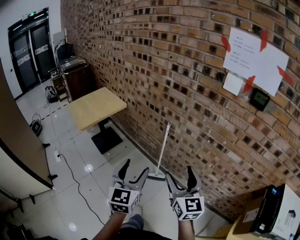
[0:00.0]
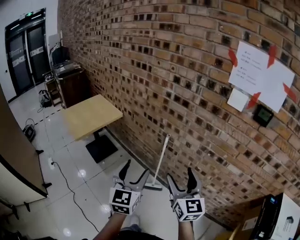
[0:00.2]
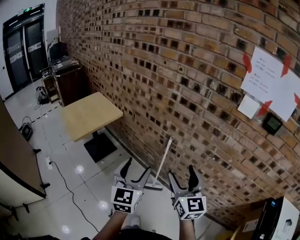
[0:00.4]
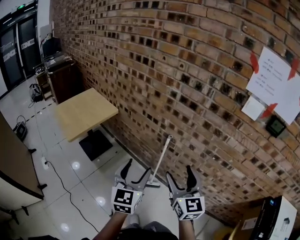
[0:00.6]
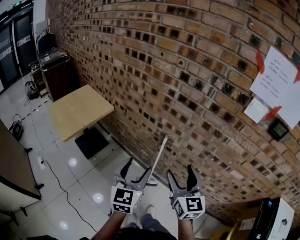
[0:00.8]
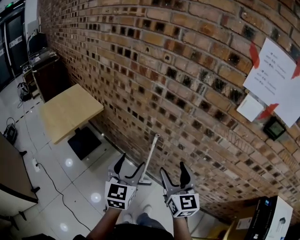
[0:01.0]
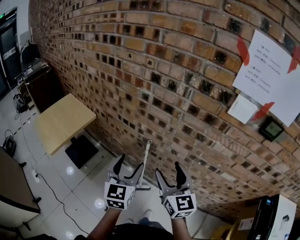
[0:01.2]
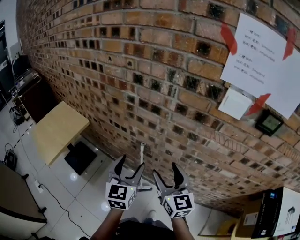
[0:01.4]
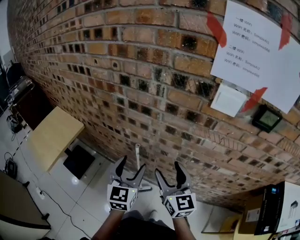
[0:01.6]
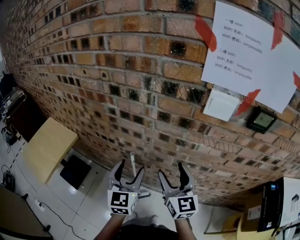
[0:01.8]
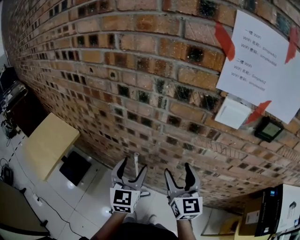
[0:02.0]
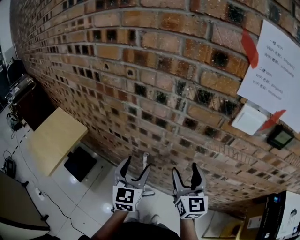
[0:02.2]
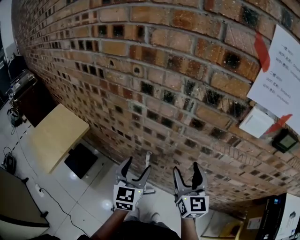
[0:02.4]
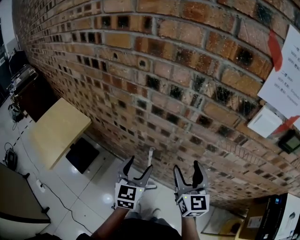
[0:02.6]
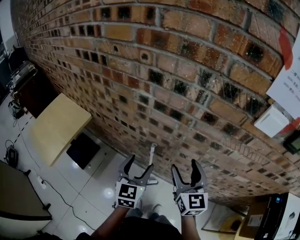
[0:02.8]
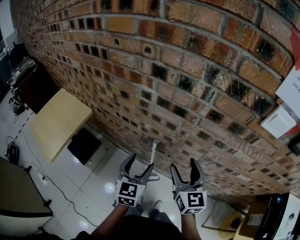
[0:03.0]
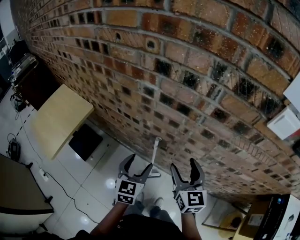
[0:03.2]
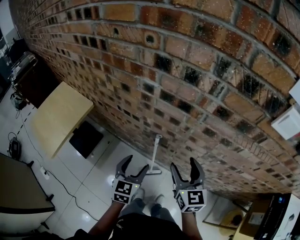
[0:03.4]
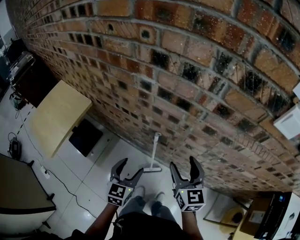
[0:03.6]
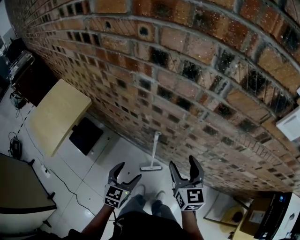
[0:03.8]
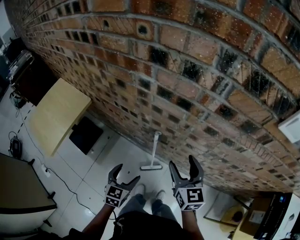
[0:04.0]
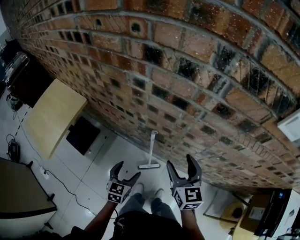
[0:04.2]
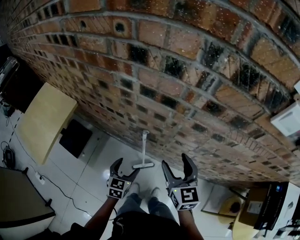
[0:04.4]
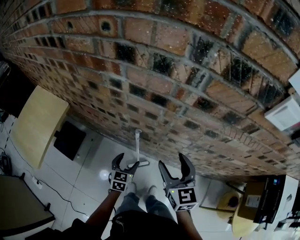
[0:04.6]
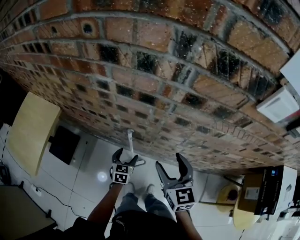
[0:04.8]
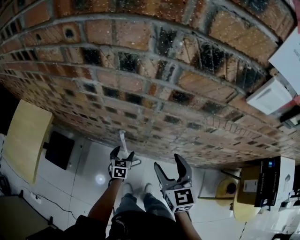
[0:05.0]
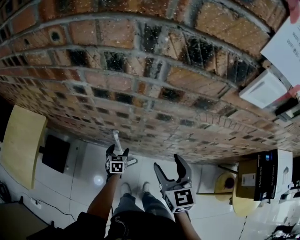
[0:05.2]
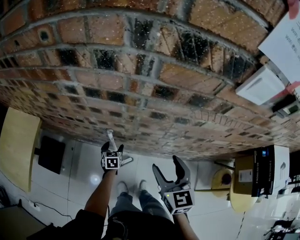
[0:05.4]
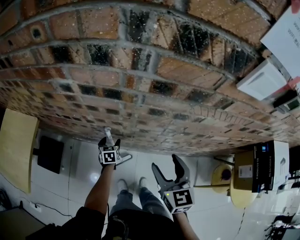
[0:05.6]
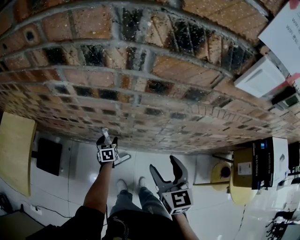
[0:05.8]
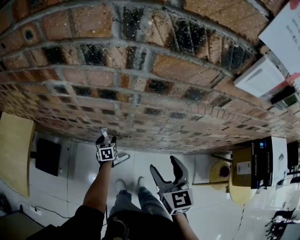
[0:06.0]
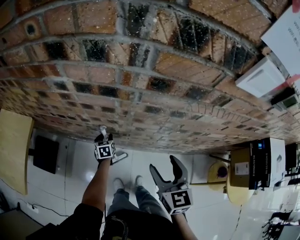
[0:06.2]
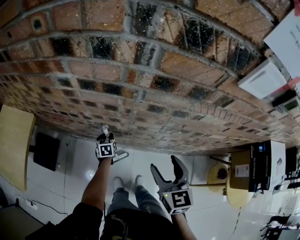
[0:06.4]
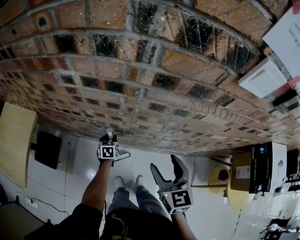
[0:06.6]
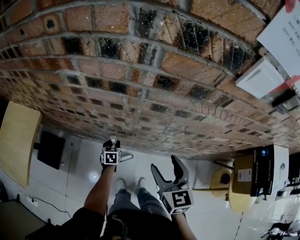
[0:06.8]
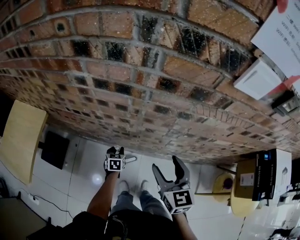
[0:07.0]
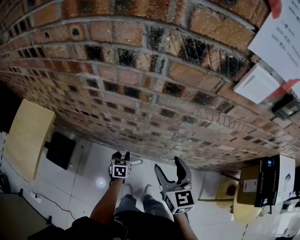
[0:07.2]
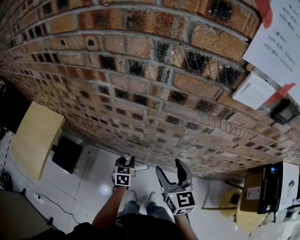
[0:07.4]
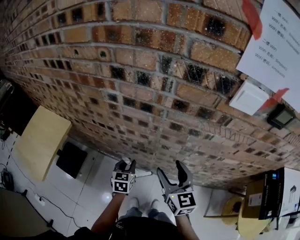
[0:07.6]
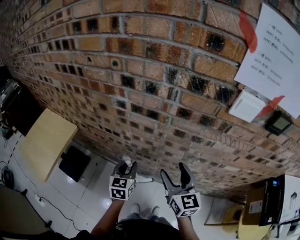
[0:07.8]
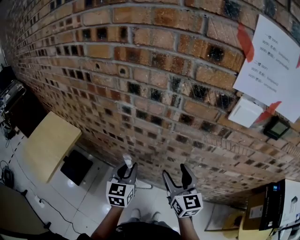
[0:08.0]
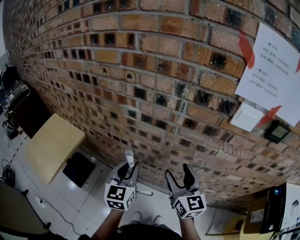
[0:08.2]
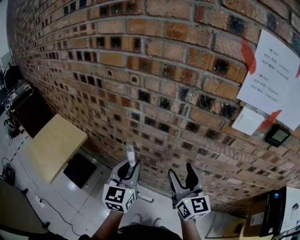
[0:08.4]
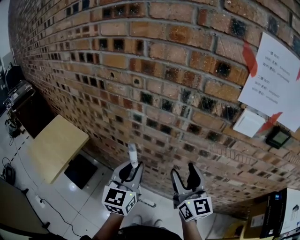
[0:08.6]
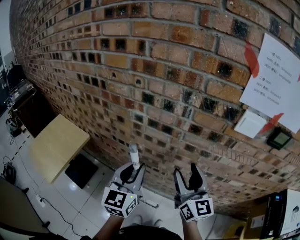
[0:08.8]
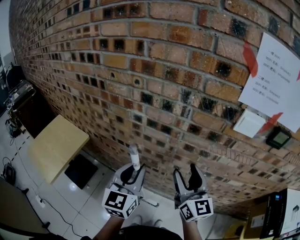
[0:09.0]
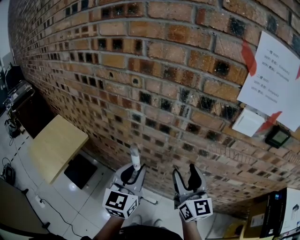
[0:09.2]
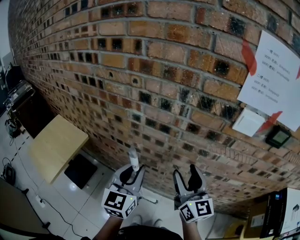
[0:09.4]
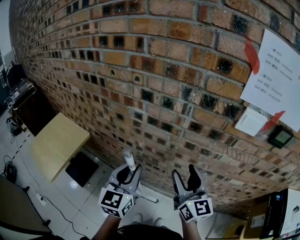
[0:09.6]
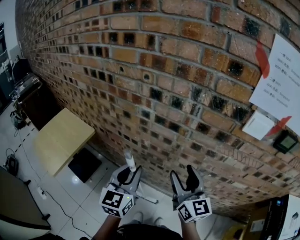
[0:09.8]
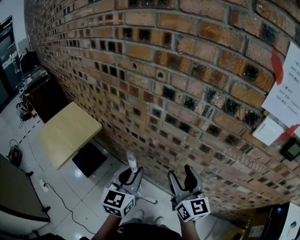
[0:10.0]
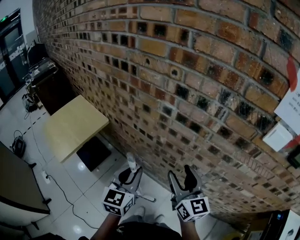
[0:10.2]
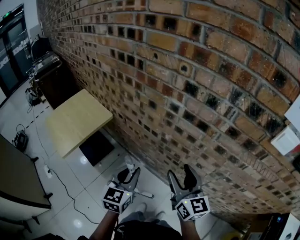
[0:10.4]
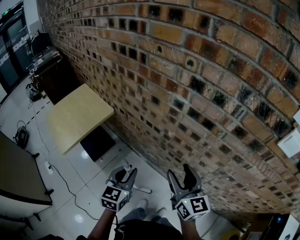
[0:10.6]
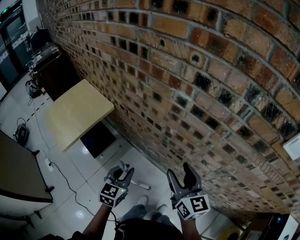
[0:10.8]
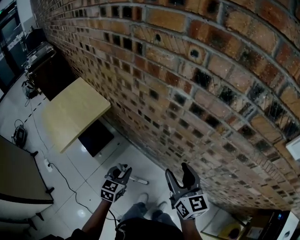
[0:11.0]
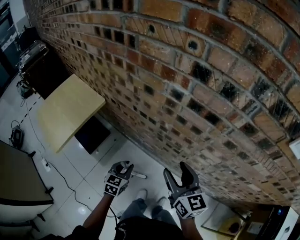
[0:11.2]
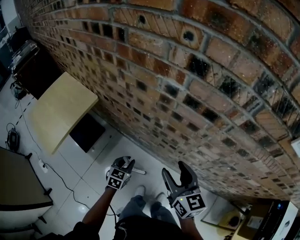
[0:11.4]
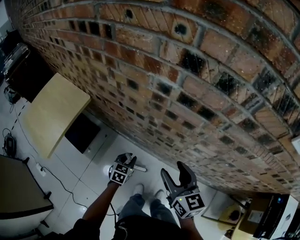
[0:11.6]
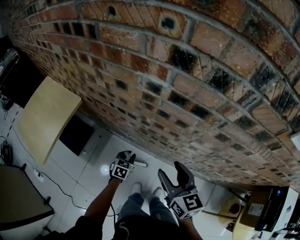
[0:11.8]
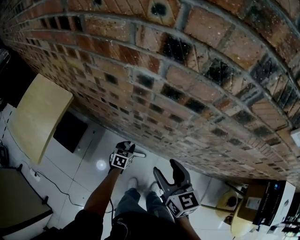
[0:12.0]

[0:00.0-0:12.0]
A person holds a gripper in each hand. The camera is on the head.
0:00.0 to 0:01.6: The two grippers go about 30 cm forward.
0:01.6 to 0:03.0: The left gripper shifts approximately 15 cm downward, to the left and forward, while the right gripper is displaced forward by some 5 cm.
0:03.0 to 0:04.4: The left gripper is displaced downward by roughly 20 cm, while the right gripper moves downward, approximately 5 cm.
0:04.4 to 0:06.0: The left gripper moves forward and downward, approximately 20 cm, while the right gripper is displaced to the right by approximately 10 cm.
0:06.0 to 0:07.6: The right gripper goes roughly 5 cm upward; the left gripper shifts about 25 cm upward and backward, and closes.
0:07.6 to 0:09.0: The right gripper heads upward, covering about 10 cm. The left gripper heads upward, covering roughly 30 cm, and angles its fingers upward, by some 30 degrees.
0:09.0 to 0:10.4: The left gripper heads downward and to the left, covering about 15 cm, and changes its angle by about 20 degrees, while the right gripper moves to the left and downward, roughly 15 cm, and swivels approximately 20 degrees.
0:10.4 to 0:12.0: The right gripper heads downward, covering approximately 10 cm, while the left gripper travels downward and forward by about 40 cm, and swivels roughly 30 degrees.

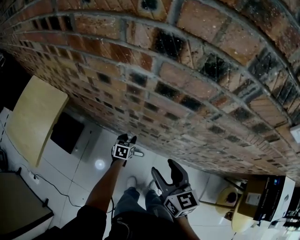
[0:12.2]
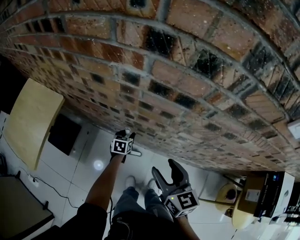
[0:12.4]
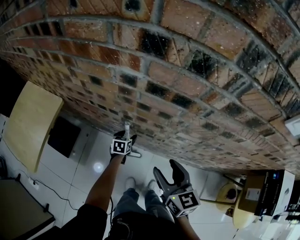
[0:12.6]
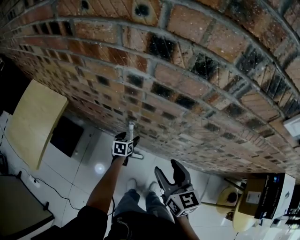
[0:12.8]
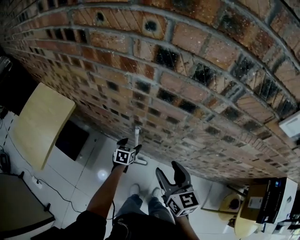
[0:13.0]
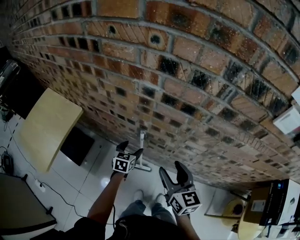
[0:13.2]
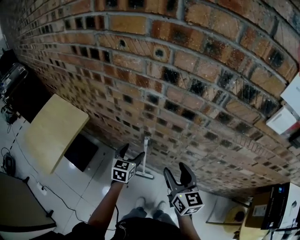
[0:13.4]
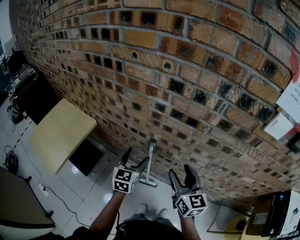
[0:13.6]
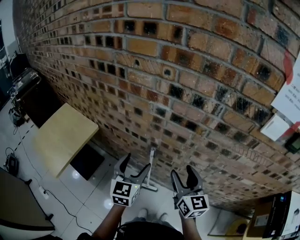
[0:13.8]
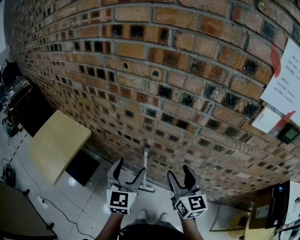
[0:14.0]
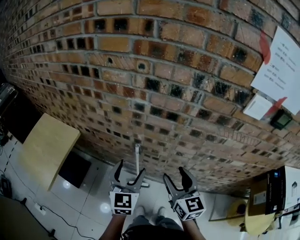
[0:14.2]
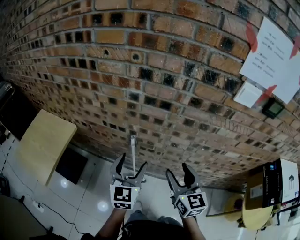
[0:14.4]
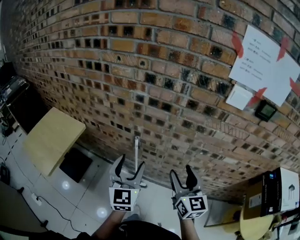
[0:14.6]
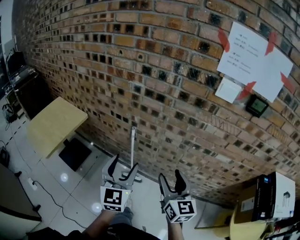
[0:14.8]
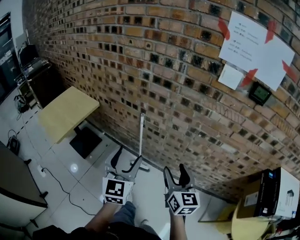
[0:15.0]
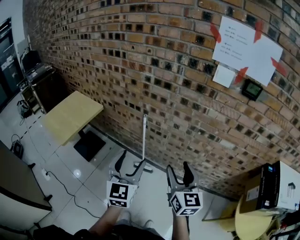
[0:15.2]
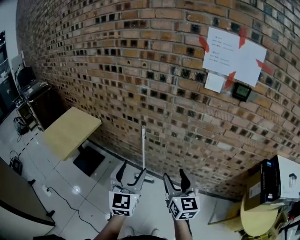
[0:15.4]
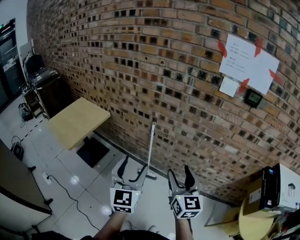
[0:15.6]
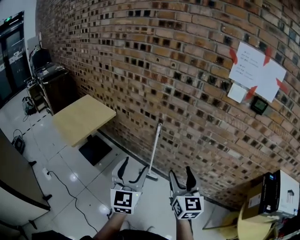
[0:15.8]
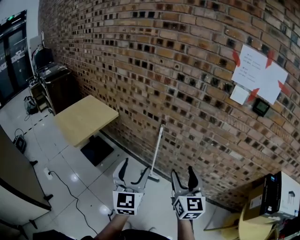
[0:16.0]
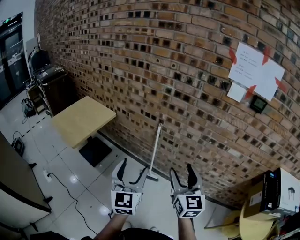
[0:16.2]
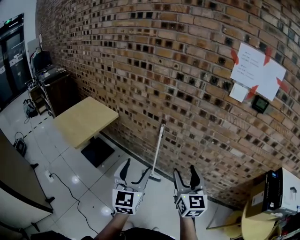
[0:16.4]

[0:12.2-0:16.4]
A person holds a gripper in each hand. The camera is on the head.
0:12.2 to 0:13.6: The left gripper heads upward, covering about 30 cm, rotates about 30 degrees, and opens its fingers, while the right gripper is displaced upward by about 10 cm.
0:13.6 to 0:15.0: The right gripper shifts roughly 25 cm backward; the left gripper is displaced backward and upward by about 35 cm.
0:15.0 to 0:16.4: The right gripper moves to the left, backward and upward, about 15 cm. The left gripper travels backward and to the left by approximately 15 cm.

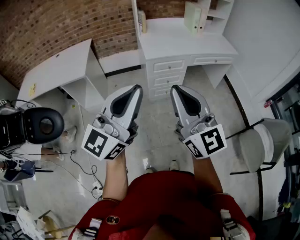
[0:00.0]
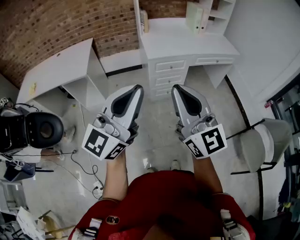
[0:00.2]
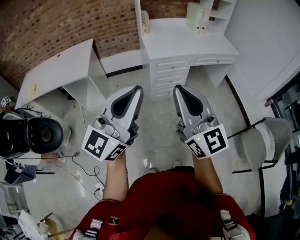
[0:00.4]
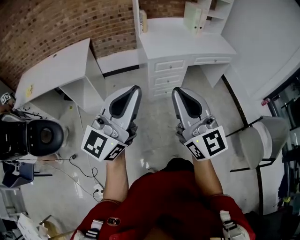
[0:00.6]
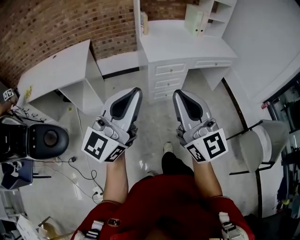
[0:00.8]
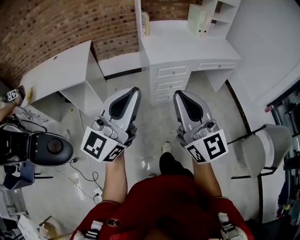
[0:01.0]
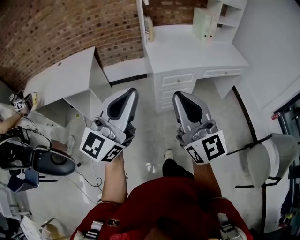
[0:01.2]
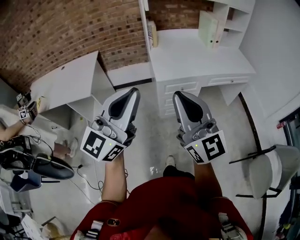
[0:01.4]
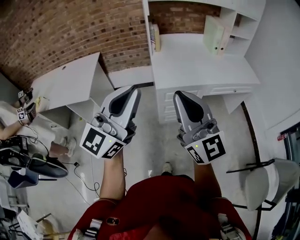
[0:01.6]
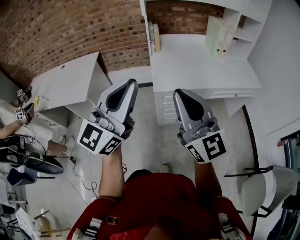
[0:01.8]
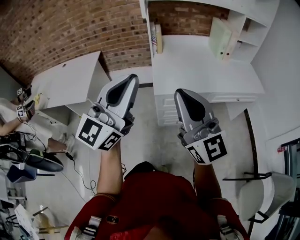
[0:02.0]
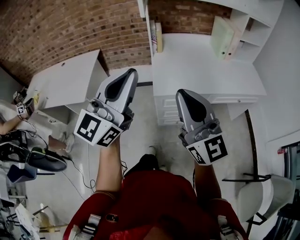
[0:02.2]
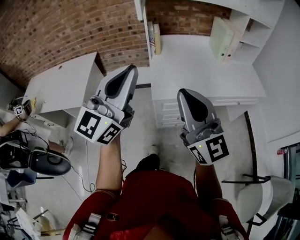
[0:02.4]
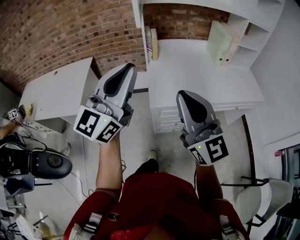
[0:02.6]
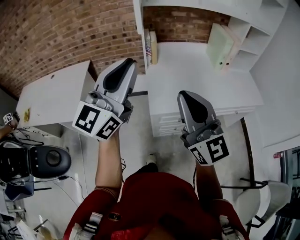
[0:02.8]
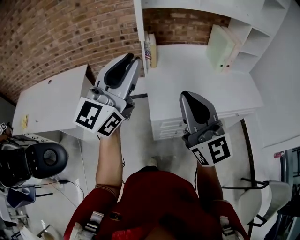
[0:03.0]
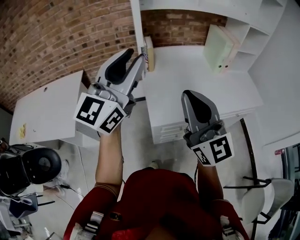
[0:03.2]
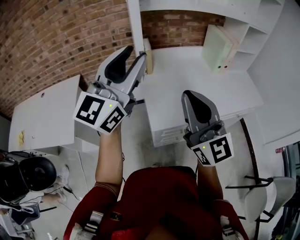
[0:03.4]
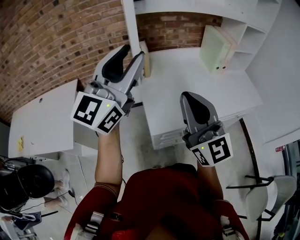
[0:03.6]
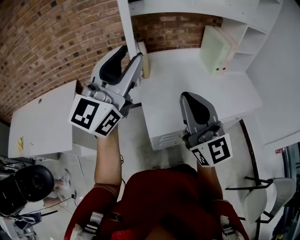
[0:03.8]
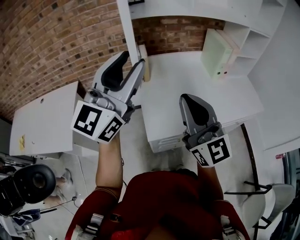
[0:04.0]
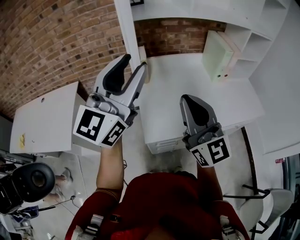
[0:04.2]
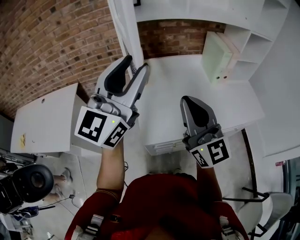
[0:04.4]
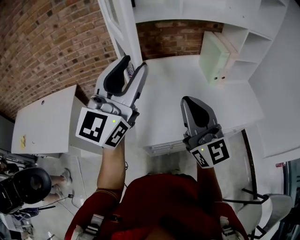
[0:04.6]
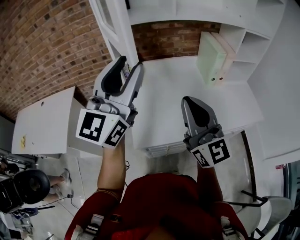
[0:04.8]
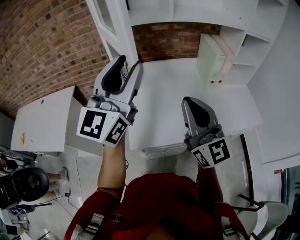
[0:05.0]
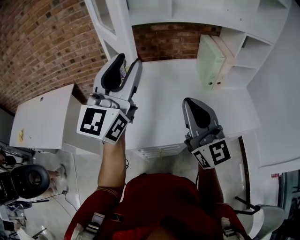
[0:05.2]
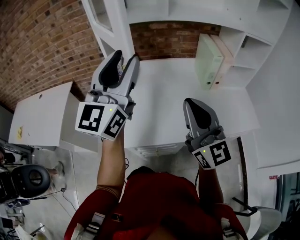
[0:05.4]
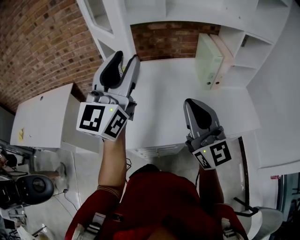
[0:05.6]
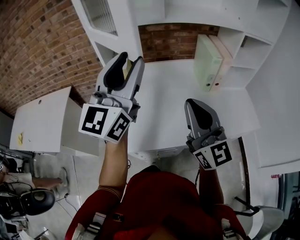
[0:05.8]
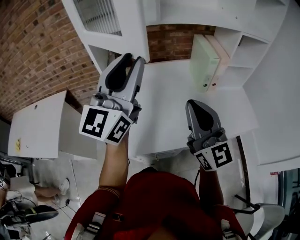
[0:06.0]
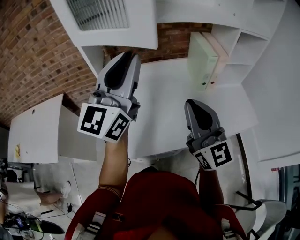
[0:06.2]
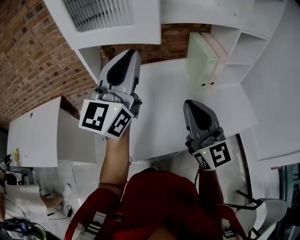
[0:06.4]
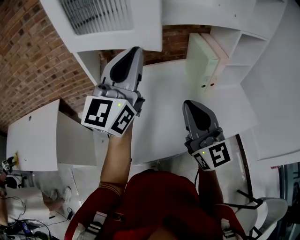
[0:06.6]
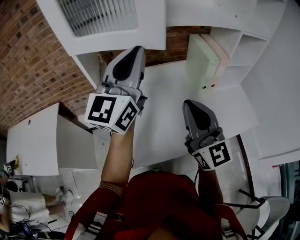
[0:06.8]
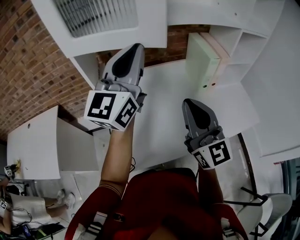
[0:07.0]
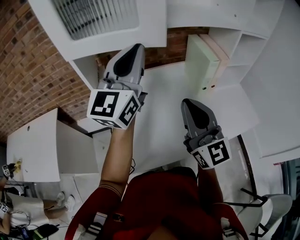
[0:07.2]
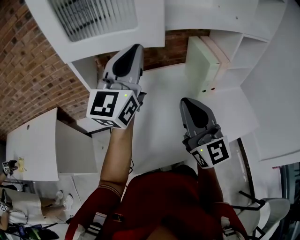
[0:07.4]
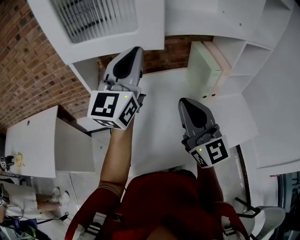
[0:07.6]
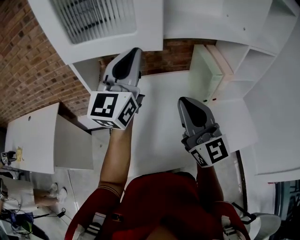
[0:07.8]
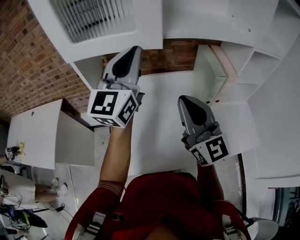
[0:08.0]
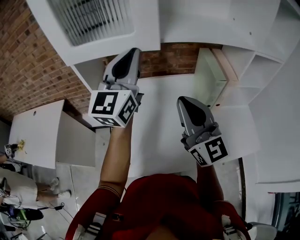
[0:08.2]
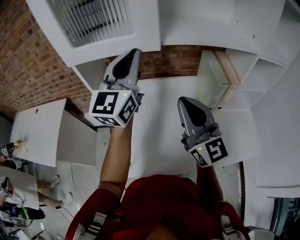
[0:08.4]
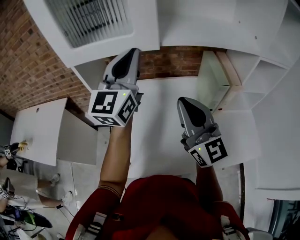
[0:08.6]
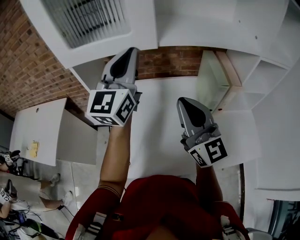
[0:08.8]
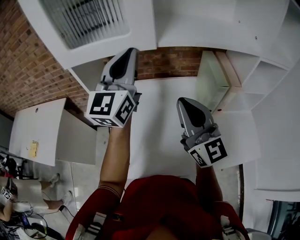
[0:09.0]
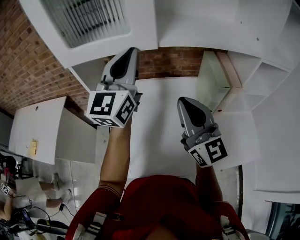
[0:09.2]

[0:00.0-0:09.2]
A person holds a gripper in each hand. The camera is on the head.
0:00.0 to 0:01.6: The two grippers go some 25 cm forward.
0:01.6 to 0:03.0: Both grippers travel together forward, roughly 30 cm.
0:03.0 to 0:04.6: Both grippers travel together forward and to the right, roughly 15 cm. The left gripper opens up.
0:04.6 to 0:06.2: The left gripper is displaced forward and to the right by about 15 cm, and closes its fingers. The right gripper travels to the right and forward by some 15 cm.
0:06.2 to 0:07.6: Both grippers move forward, some 10 cm.
0:07.6 to 0:09.2: Both grippers travel together forward, approximately 5 cm.
